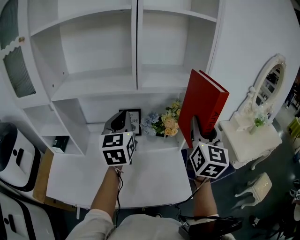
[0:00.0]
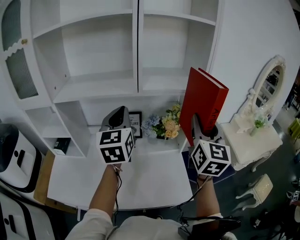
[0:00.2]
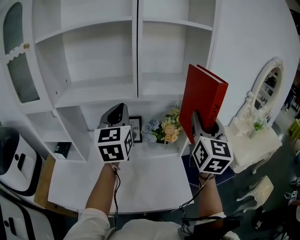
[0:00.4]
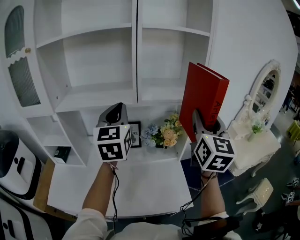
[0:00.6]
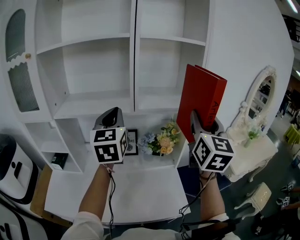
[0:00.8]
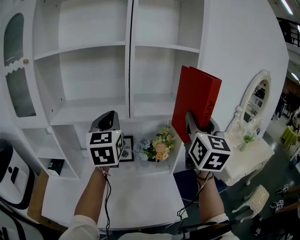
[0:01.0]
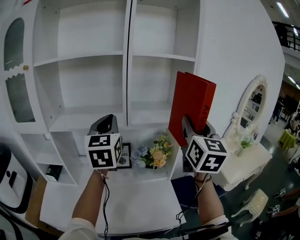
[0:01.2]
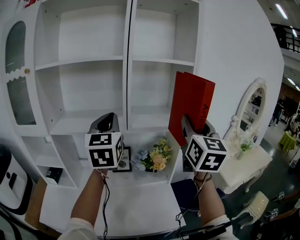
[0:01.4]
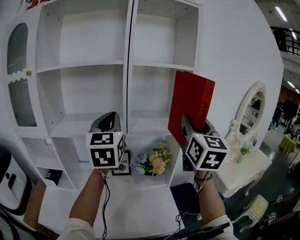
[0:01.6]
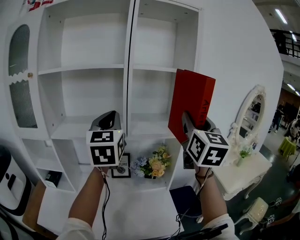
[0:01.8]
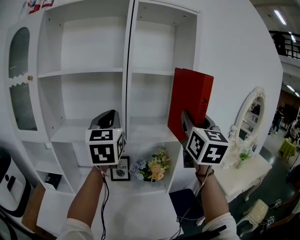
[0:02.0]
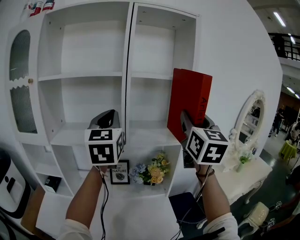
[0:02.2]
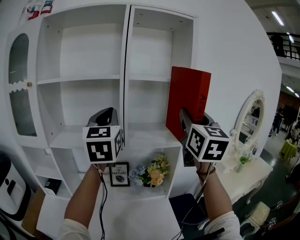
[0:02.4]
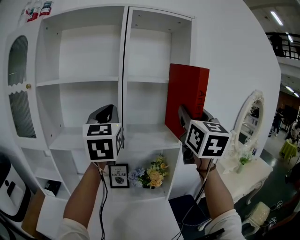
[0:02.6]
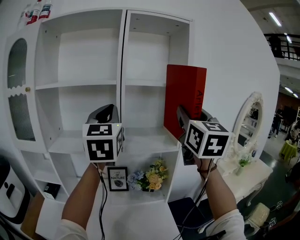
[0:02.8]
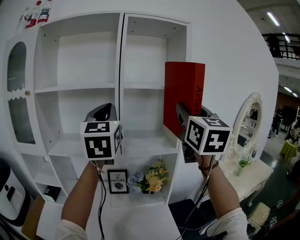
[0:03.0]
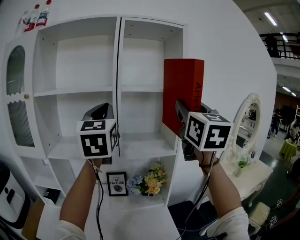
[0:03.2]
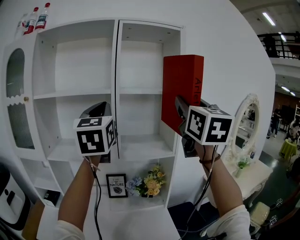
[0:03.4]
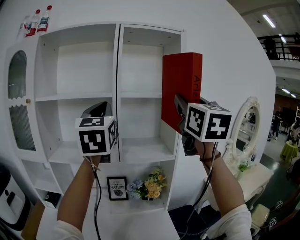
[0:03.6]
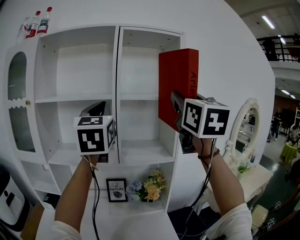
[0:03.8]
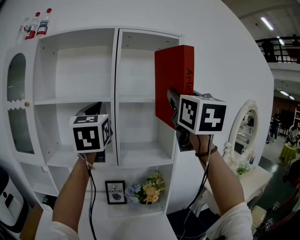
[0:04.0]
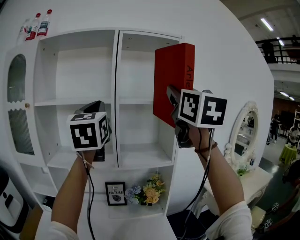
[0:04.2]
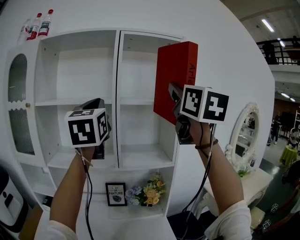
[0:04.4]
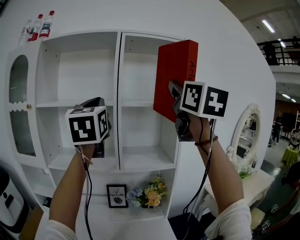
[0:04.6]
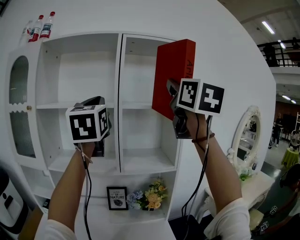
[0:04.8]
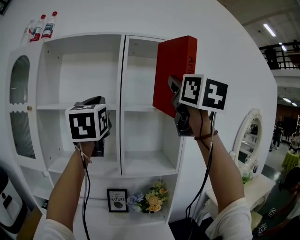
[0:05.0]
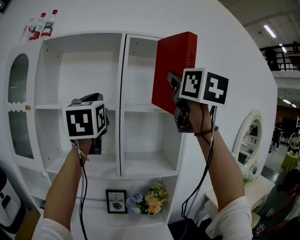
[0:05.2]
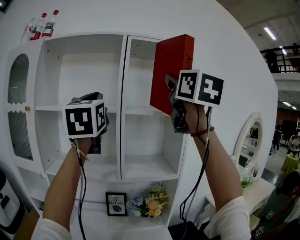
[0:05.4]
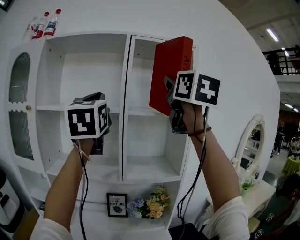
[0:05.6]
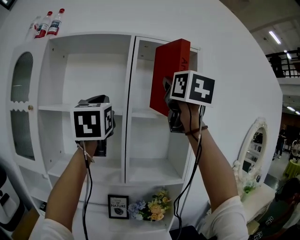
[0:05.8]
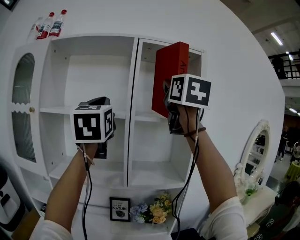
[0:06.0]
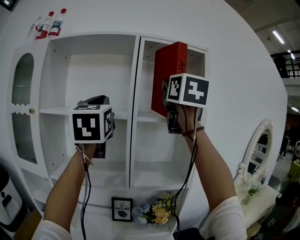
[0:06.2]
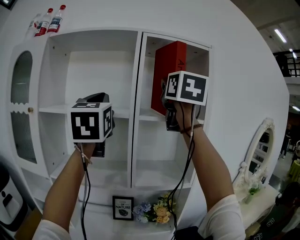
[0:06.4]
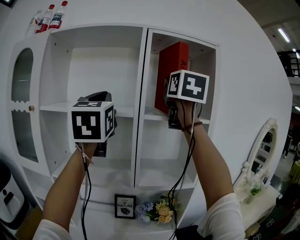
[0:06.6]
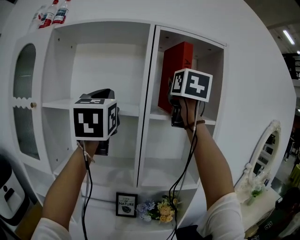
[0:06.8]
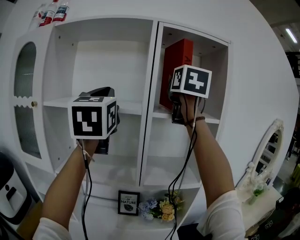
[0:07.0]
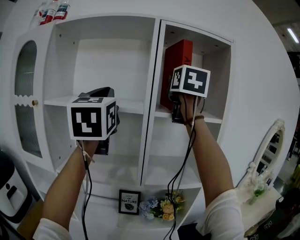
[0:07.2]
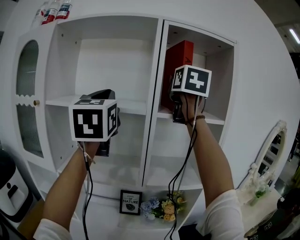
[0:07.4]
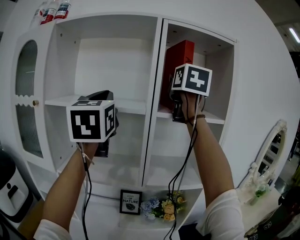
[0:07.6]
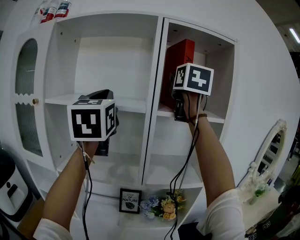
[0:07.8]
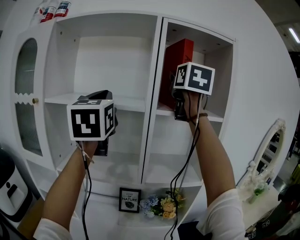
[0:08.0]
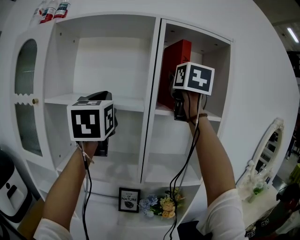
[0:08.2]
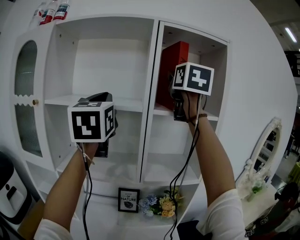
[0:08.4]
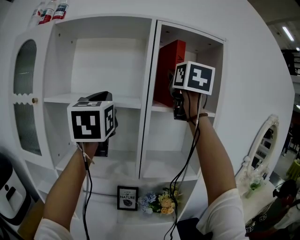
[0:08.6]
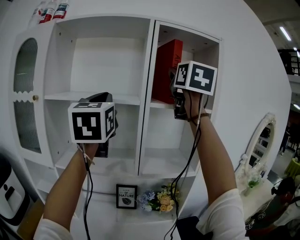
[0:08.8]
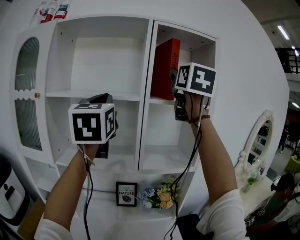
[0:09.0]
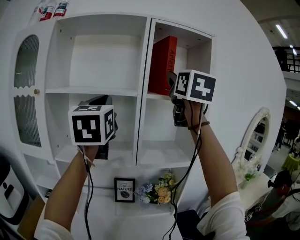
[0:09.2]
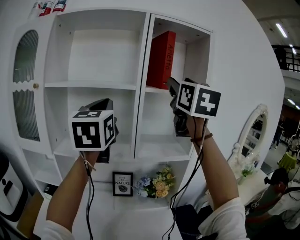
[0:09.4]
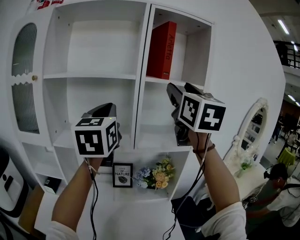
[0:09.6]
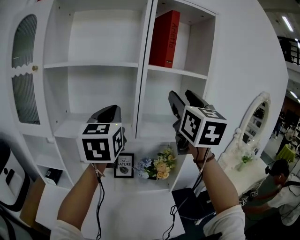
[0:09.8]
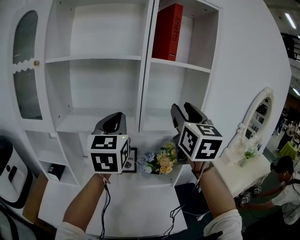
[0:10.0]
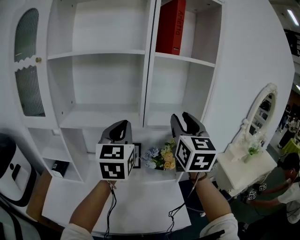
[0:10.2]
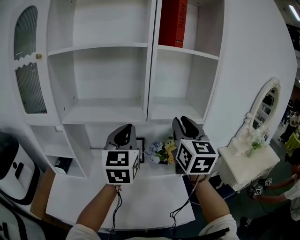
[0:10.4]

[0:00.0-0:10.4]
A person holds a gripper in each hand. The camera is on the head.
0:00.0 to 0:01.4: Both grippers move upward, roughly 15 cm.
0:01.4 to 0:03.0: The grippers both shift upward by some 10 cm.
0:03.0 to 0:04.4: The right gripper is displaced upward by roughly 10 cm. Meanwhile the left gripper shifts about 5 cm upward.
0:04.4 to 0:06.0: The left gripper travels forward by some 5 cm, while the right gripper goes roughly 15 cm forward, to the left and upward.
0:06.0 to 0:07.4: The left gripper shifts by approximately 5 cm. The right gripper moves forward, some 15 cm.
0:07.4 to 0:09.0: The left gripper ends up approximately 5 cm from where it was, while the right gripper shifts roughly 10 cm backward.
0:09.0 to 0:10.4: The two grippers go some 30 cm downward. The right gripper closes.

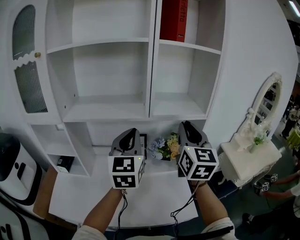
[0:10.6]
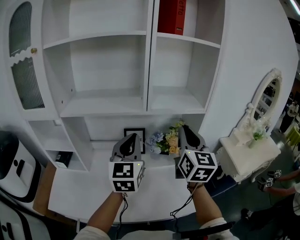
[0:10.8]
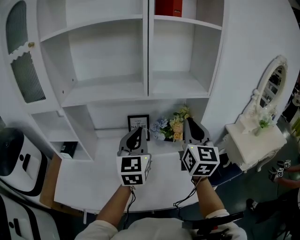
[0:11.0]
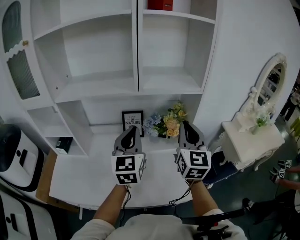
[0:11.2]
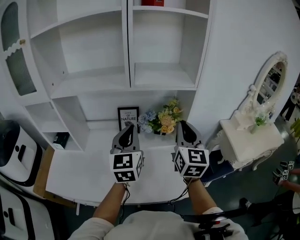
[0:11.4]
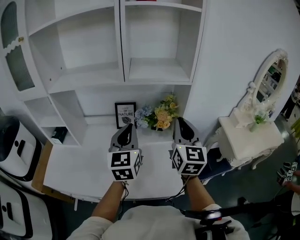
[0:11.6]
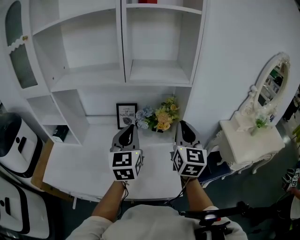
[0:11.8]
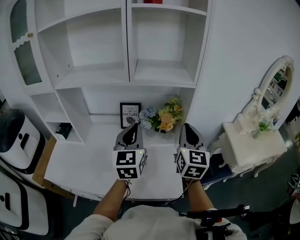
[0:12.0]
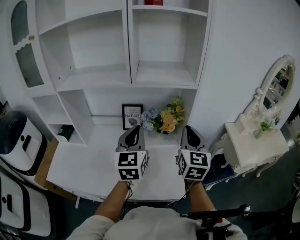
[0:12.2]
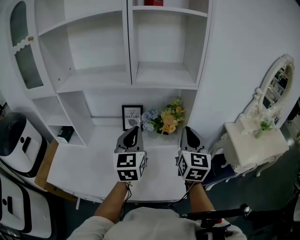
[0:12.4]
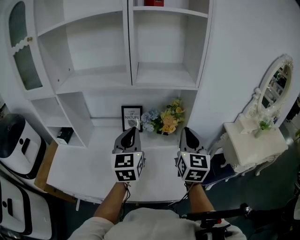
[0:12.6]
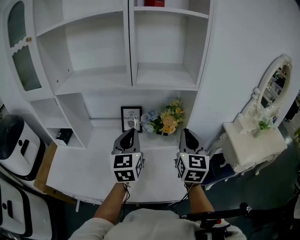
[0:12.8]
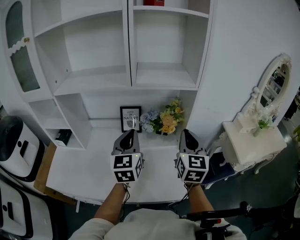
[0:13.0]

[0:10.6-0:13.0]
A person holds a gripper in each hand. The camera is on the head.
0:10.6 to 0:11.8: The two grippers go about 15 cm downward and to the right.
0:11.8 to 0:13.0: There are only small adjustments of the grippers.

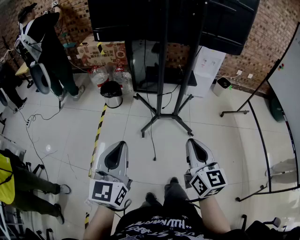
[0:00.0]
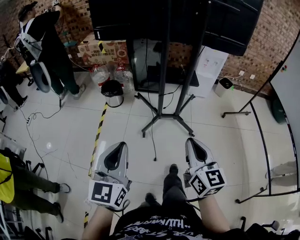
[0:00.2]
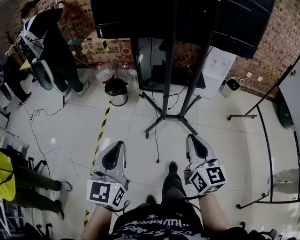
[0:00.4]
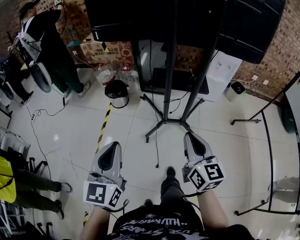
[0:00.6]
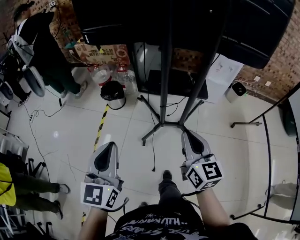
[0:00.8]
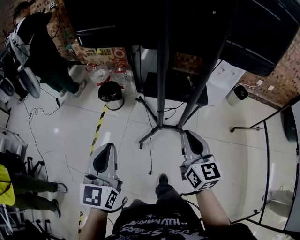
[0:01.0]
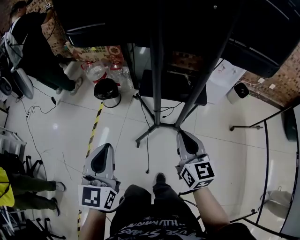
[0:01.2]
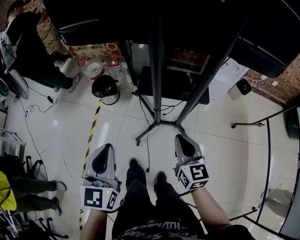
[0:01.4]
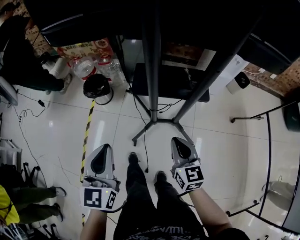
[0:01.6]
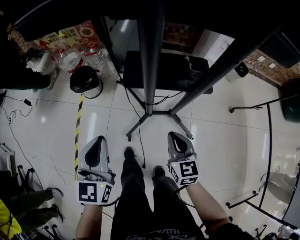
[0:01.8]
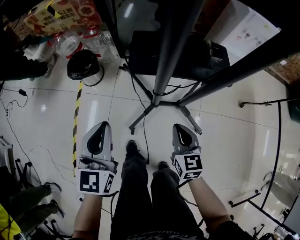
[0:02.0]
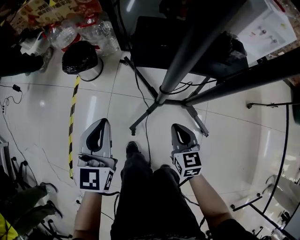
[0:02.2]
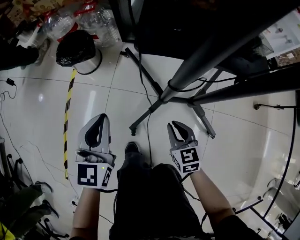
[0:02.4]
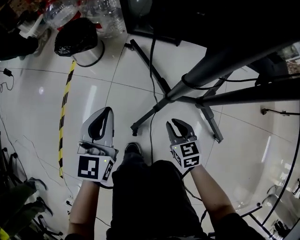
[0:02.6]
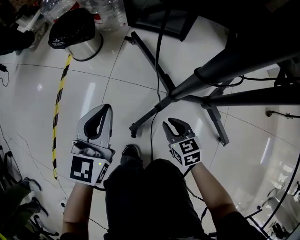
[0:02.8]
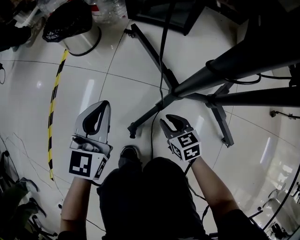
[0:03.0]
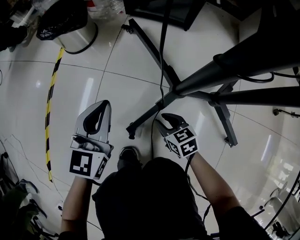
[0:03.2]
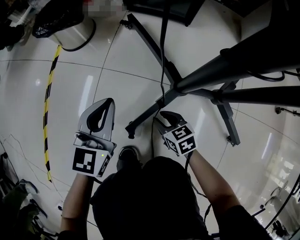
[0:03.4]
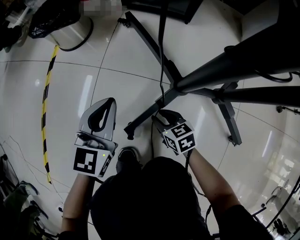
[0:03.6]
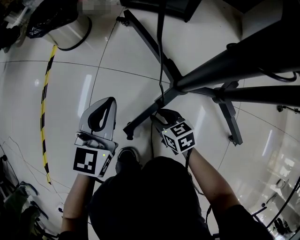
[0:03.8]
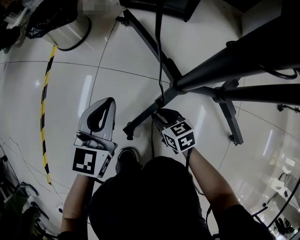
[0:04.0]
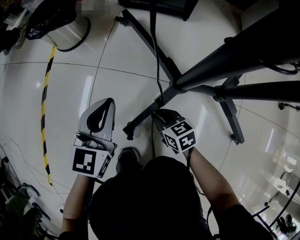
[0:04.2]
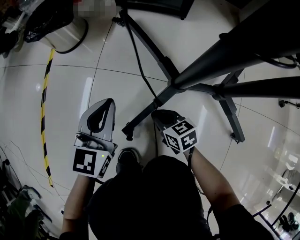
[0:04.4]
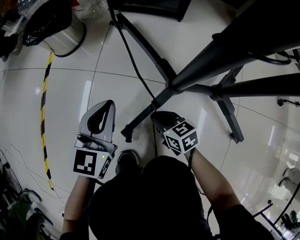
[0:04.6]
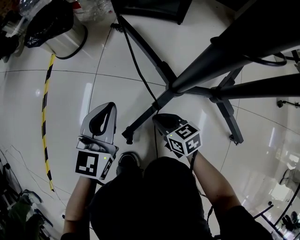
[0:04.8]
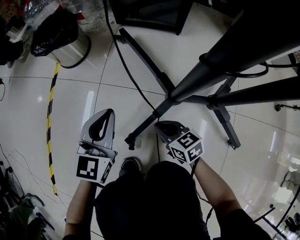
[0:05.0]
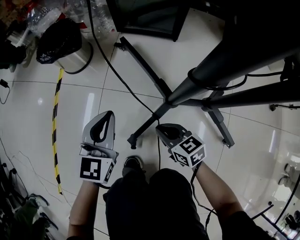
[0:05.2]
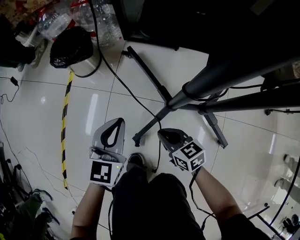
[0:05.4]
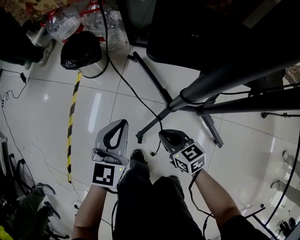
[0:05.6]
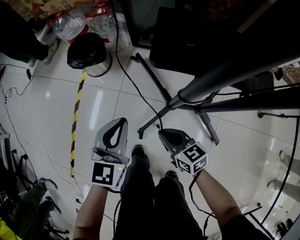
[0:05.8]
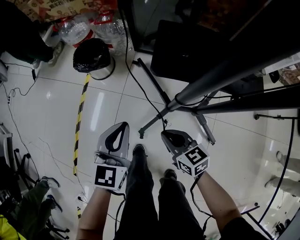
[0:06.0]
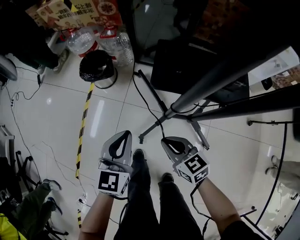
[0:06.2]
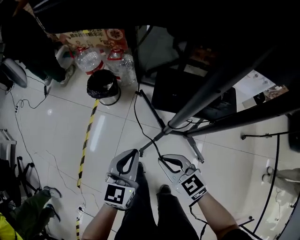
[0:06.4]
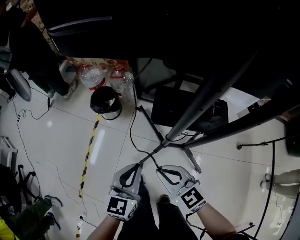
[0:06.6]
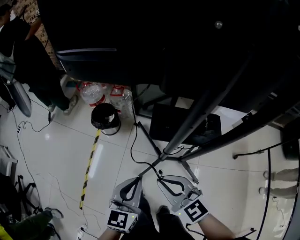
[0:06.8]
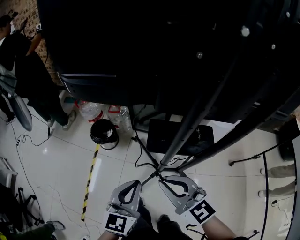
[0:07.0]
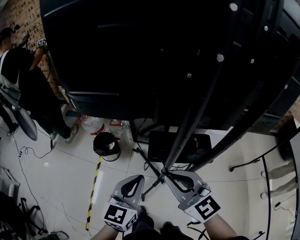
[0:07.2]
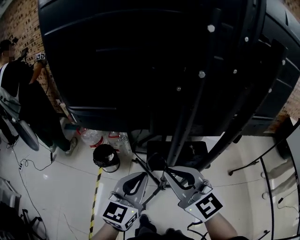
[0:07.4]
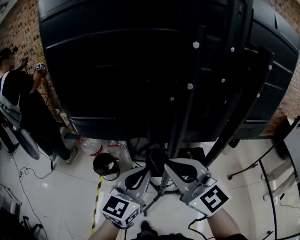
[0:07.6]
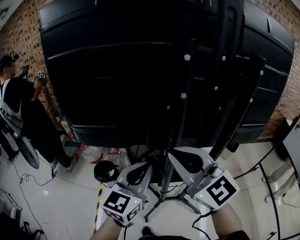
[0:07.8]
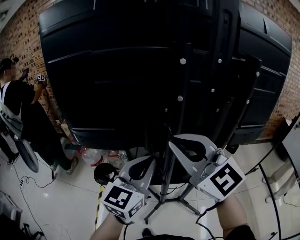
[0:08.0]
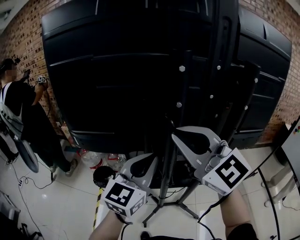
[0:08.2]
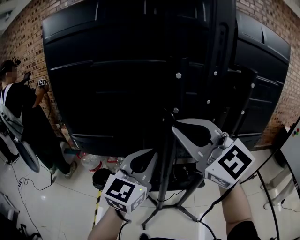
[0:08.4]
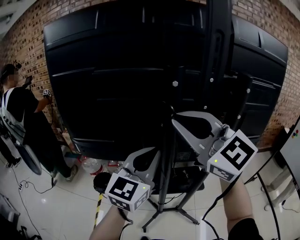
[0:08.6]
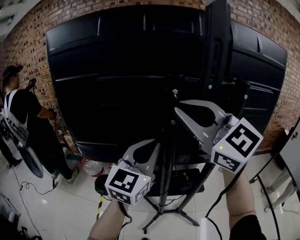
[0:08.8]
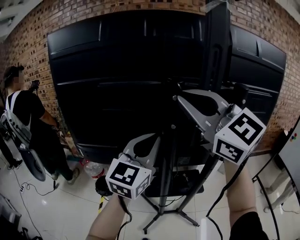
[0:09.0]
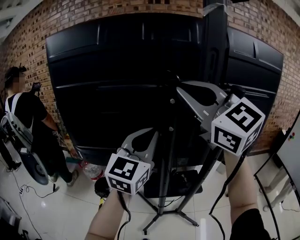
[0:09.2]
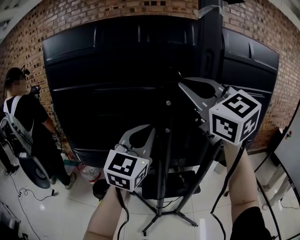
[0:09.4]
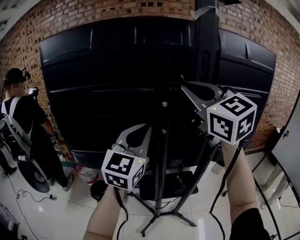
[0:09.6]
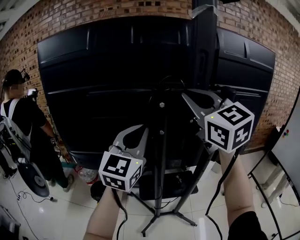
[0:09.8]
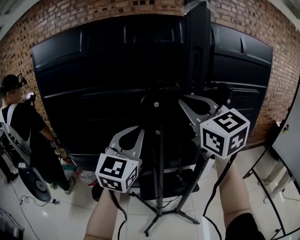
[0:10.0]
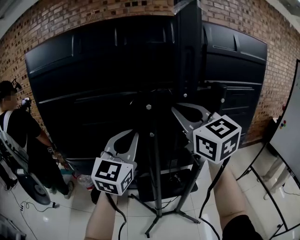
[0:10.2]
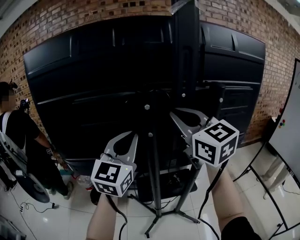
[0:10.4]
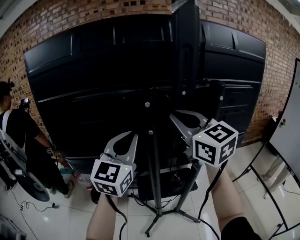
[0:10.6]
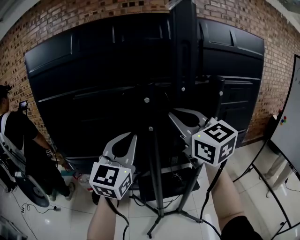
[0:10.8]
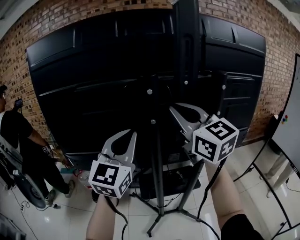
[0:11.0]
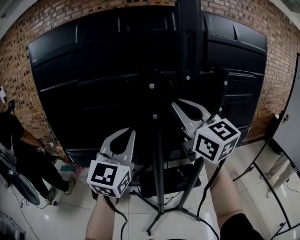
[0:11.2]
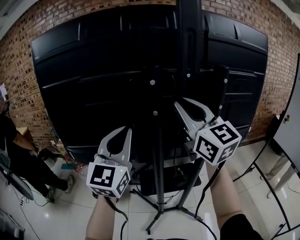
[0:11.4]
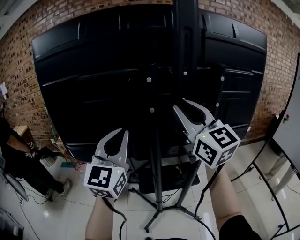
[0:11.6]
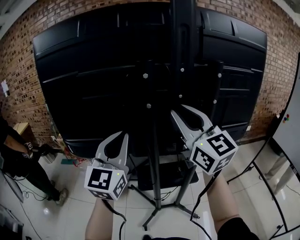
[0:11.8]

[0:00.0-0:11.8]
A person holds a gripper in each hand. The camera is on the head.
0:00.0 to 0:01.4: The right gripper goes approximately 35 cm forward and downward; the left gripper shifts about 30 cm forward.
0:01.4 to 0:03.0: The two grippers go some 60 cm downward. The right gripper changes its angle by roughly 40 degrees, and opens up.
0:03.0 to 0:04.4: The two grippers go about 10 cm downward.
0:04.4 to 0:06.0: The grippers both shift upward by some 35 cm.
0:06.0 to 0:07.4: The grippers both shift upward by some 50 cm. The right gripper changes its angle by approximately 40 degrees; the left gripper turns by some 20 degrees.
0:07.4 to 0:08.8: The grippers both shift upward by some 25 cm. The right gripper rotates roughly 20 degrees.
0:08.8 to 0:10.4: The right gripper heads to the right and forward, covering approximately 10 cm, travels upward and back again, some 5 cm each way, and swivels some 20 degrees, while the left gripper moves approximately 5 cm.
0:10.4 to 0:11.8: The grippers both shift backward by roughly 5 cm.
